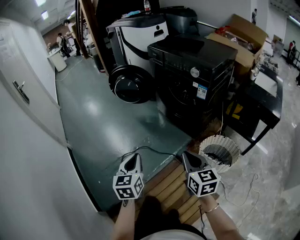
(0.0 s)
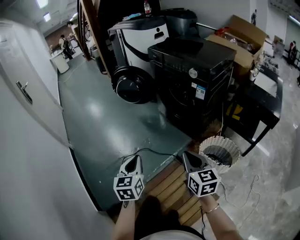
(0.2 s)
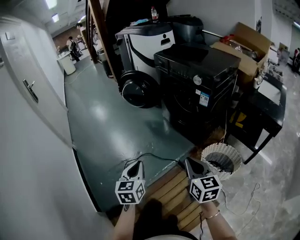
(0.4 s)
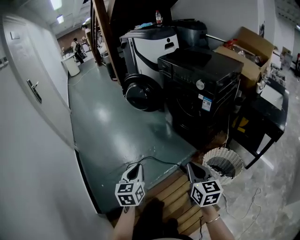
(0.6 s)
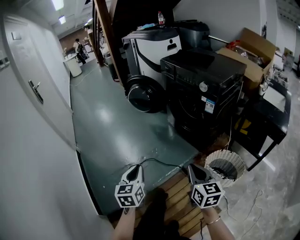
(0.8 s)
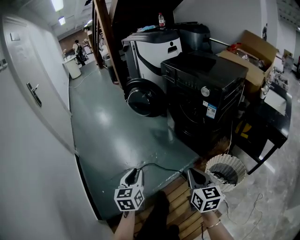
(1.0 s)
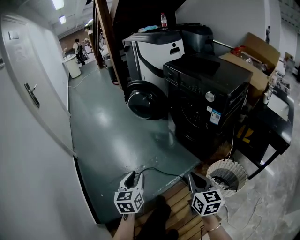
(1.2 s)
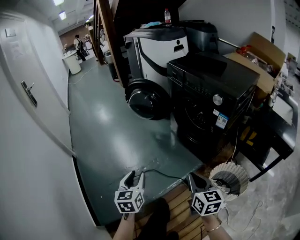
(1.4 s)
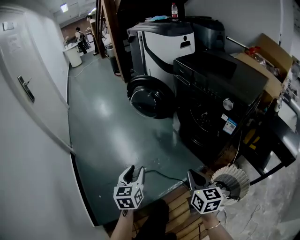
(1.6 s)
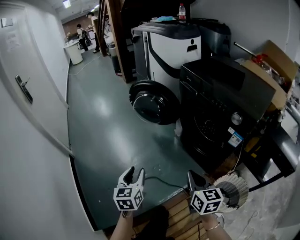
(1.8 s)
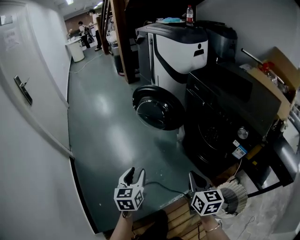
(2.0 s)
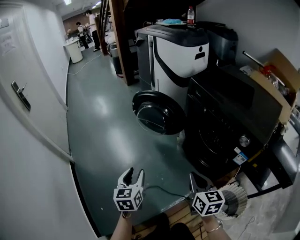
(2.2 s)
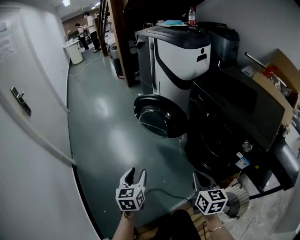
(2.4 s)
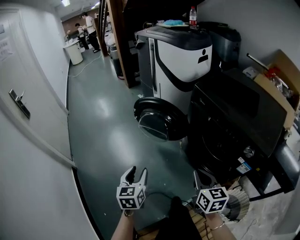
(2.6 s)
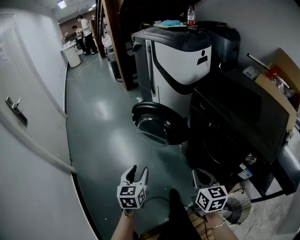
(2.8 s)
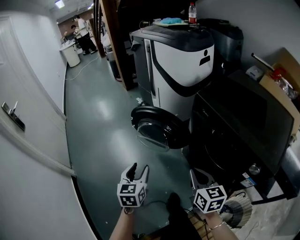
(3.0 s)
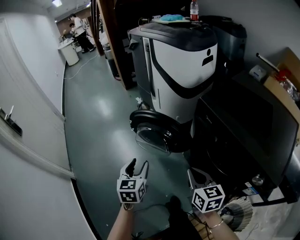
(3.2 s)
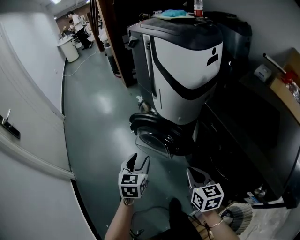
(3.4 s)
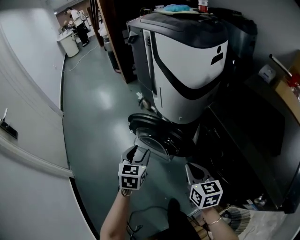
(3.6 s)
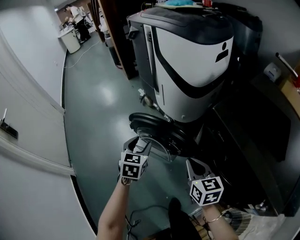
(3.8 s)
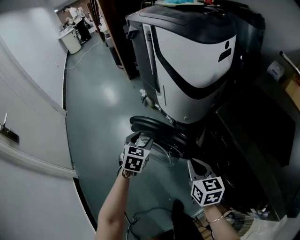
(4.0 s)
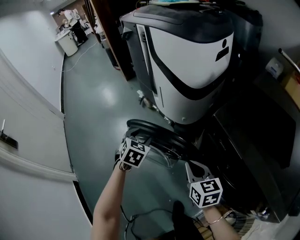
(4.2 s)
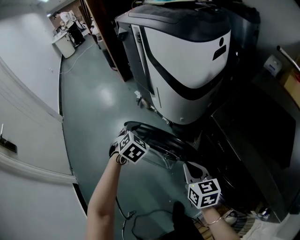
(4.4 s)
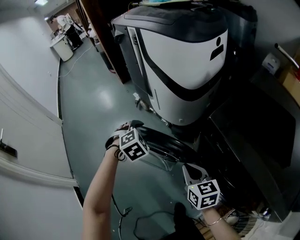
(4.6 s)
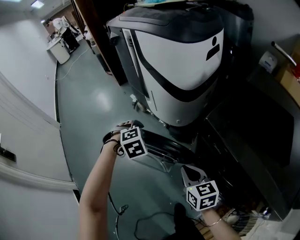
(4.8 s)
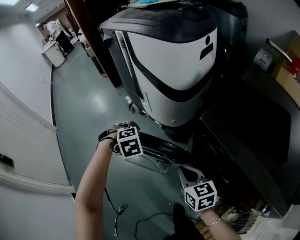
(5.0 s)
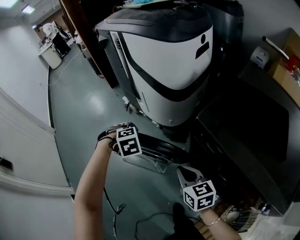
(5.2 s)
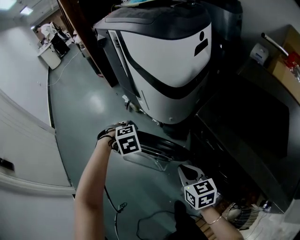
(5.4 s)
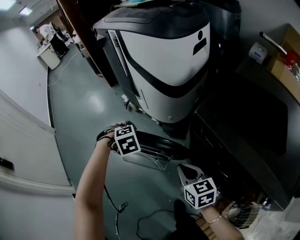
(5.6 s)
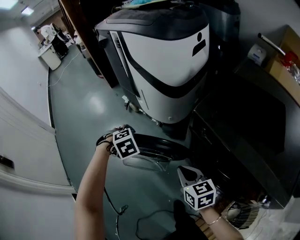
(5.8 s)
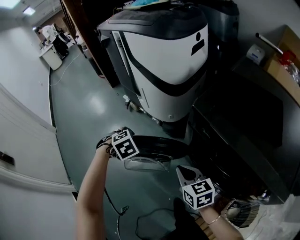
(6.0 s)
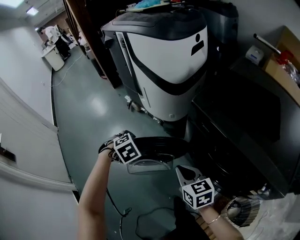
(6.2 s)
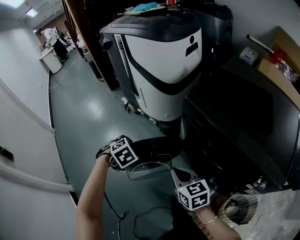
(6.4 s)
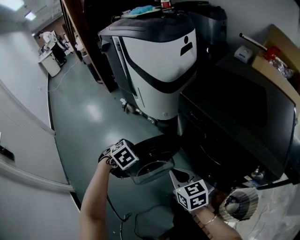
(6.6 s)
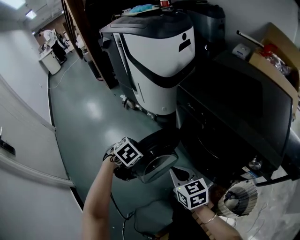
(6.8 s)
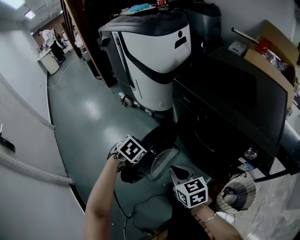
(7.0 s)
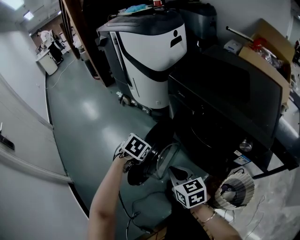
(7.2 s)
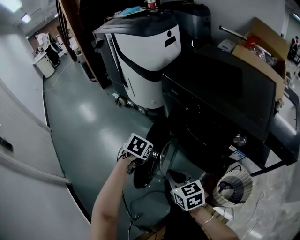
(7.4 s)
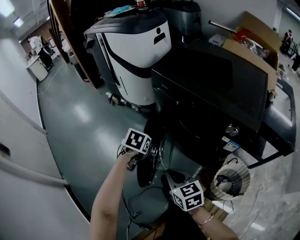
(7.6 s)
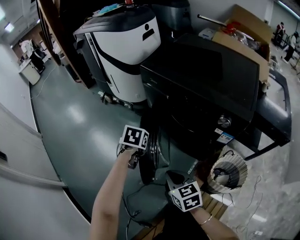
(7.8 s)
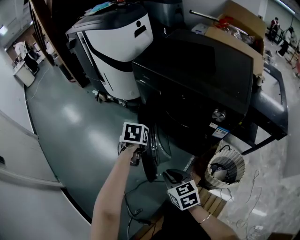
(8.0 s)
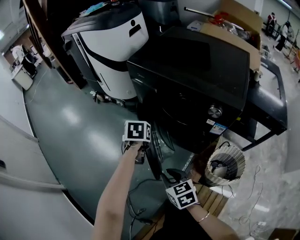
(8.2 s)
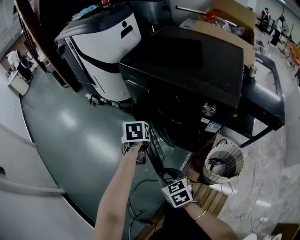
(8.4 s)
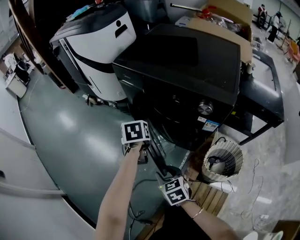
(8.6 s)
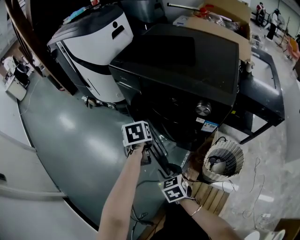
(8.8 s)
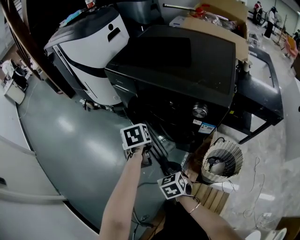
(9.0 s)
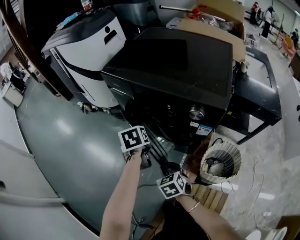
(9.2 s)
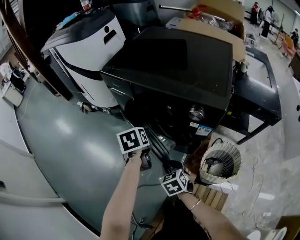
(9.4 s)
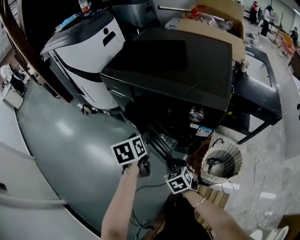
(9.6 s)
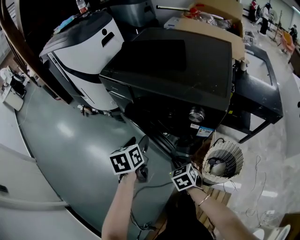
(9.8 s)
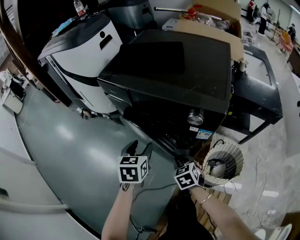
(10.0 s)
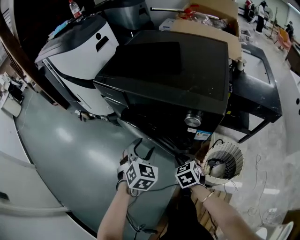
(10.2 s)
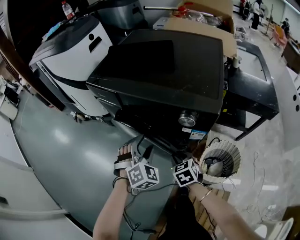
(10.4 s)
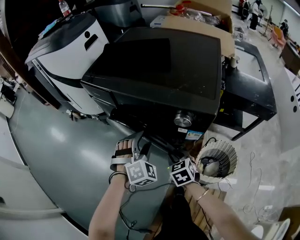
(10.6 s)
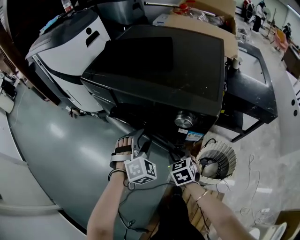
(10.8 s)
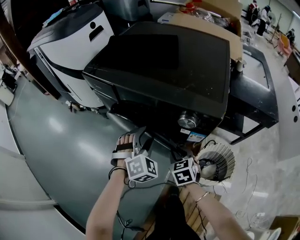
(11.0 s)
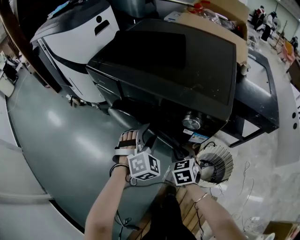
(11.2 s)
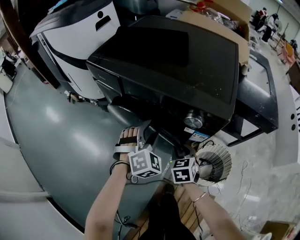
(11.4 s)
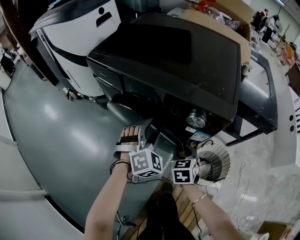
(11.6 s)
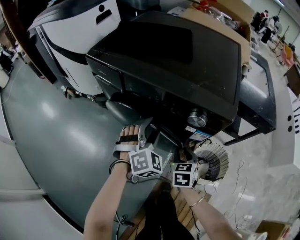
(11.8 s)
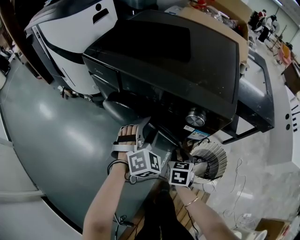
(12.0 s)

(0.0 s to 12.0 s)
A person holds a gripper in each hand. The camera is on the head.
0.0 s - 1.6 s: The grippers both shift forward by roughly 20 cm. The left gripper opens its fingers.
1.6 s - 3.0 s: The pair of grippers is taken forward, roughly 40 cm.
3.0 s - 4.4 s: The two grippers go approximately 35 cm forward. The left gripper rotates around the line of its fingers by approximately 50 degrees, clockwise from behind.
4.4 s - 6.0 s: The right gripper ends up roughly 5 cm from where it was. The left gripper ends up roughly 5 cm from where it was, and changes its angle by roughly 30 degrees.
6.0 s - 7.6 s: The left gripper moves backward and to the right, roughly 35 cm, and turns by some 40 degrees. The right gripper travels backward by about 35 cm.
7.6 s - 9.0 s: The right gripper is displaced downward and to the right by roughly 15 cm, swivels roughly 20 degrees, and opens up; the left gripper is displaced to the right by about 15 cm, and rotates about 30 degrees.
9.0 s - 10.4 s: The right gripper shifts approximately 15 cm to the right and forward. Meanwhile the left gripper goes roughly 10 cm to the right, and rolls clockwise, seen from behind, by about 80 degrees.
10.4 s - 12.0 s: The left gripper is displaced forward by some 5 cm; the right gripper moves approximately 5 cm, and rotates roughly 20 degrees.

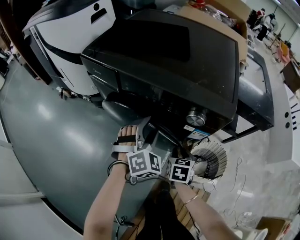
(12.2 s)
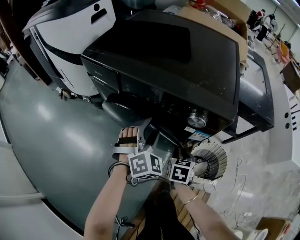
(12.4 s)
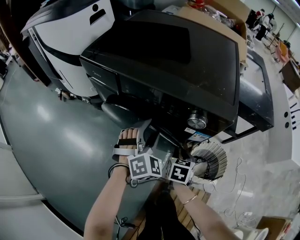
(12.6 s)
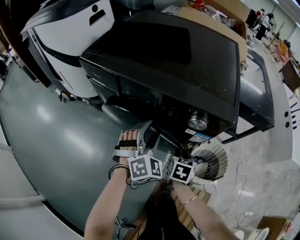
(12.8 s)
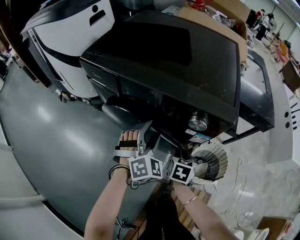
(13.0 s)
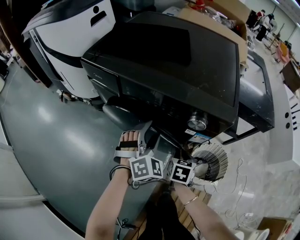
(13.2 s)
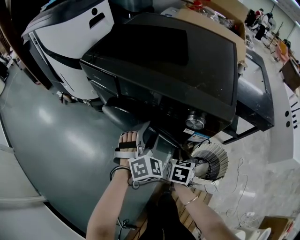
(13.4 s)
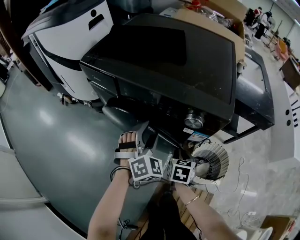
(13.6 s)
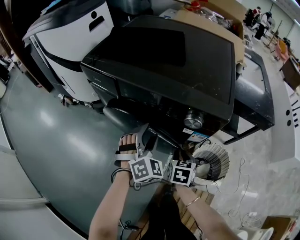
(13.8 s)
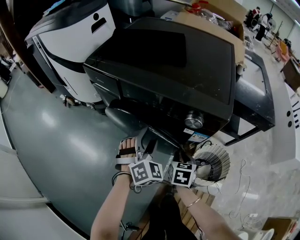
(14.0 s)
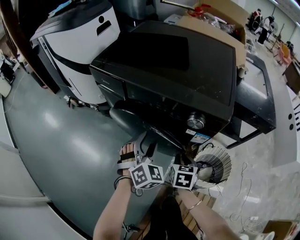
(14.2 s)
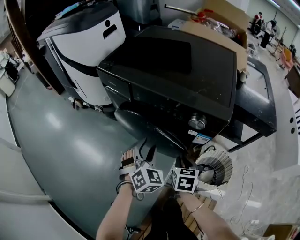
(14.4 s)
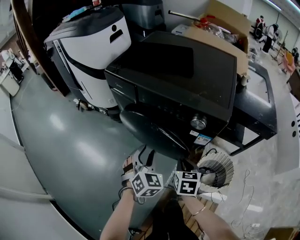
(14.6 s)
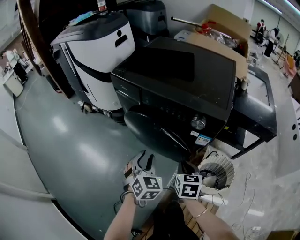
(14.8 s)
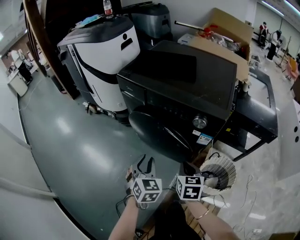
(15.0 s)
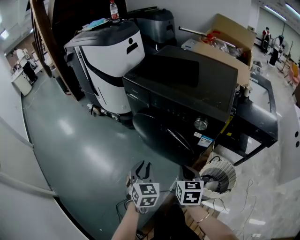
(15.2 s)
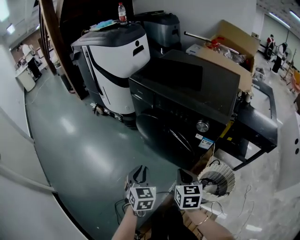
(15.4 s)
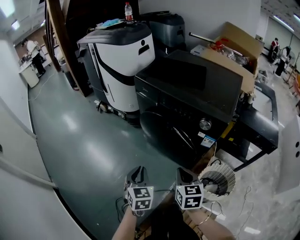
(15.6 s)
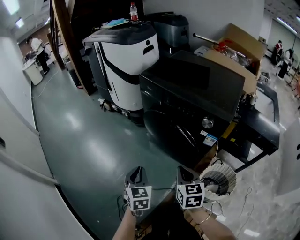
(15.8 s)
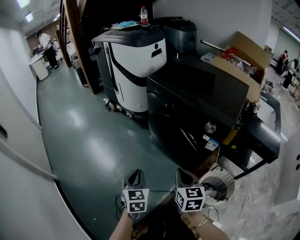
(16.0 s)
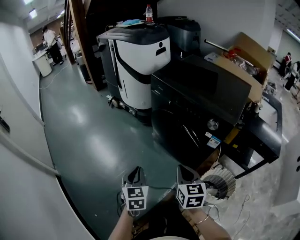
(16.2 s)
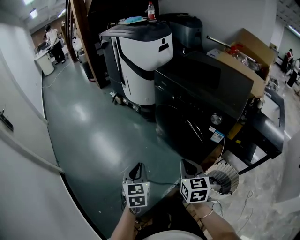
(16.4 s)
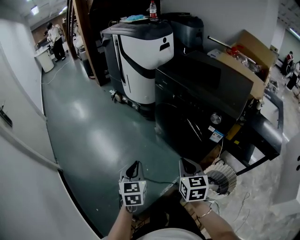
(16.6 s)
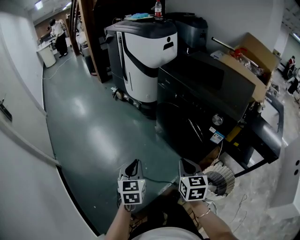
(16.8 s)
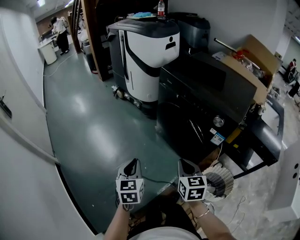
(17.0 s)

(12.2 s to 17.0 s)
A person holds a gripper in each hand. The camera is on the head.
12.2 s - 13.8 s: There are only small adjustments of the grippers.
13.8 s - 15.4 s: The right gripper moves upward, backward and to the left, some 25 cm, and swivels roughly 30 degrees, while the left gripper moves backward and to the left, approximately 30 cm, rolls counterclockwise, seen from behind, by some 50 degrees, and closes its fingers.
15.4 s - 17.0 s: The left gripper is displaced to the left and backward by some 15 cm, and turns by some 20 degrees; the right gripper is displaced to the left, upward and backward by about 10 cm.

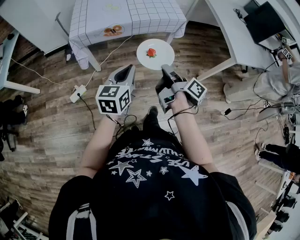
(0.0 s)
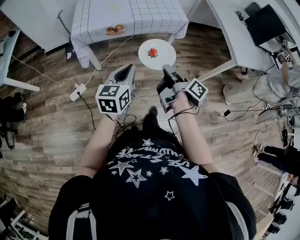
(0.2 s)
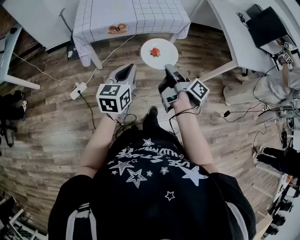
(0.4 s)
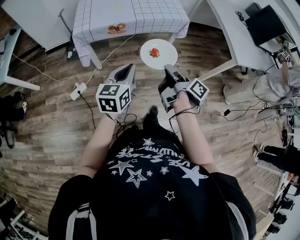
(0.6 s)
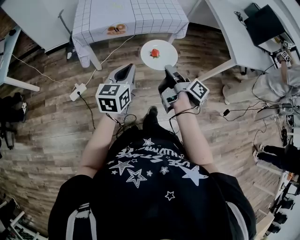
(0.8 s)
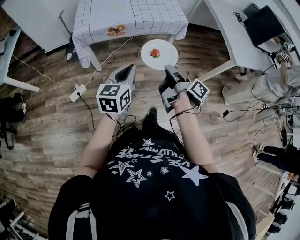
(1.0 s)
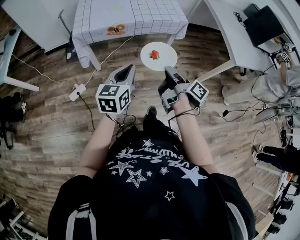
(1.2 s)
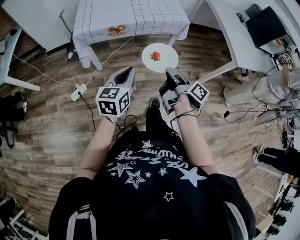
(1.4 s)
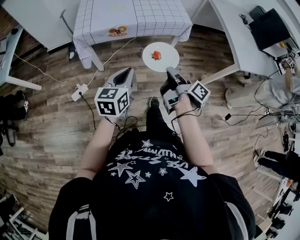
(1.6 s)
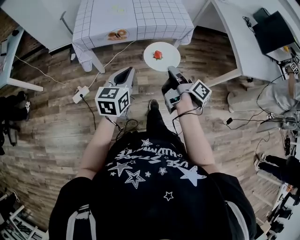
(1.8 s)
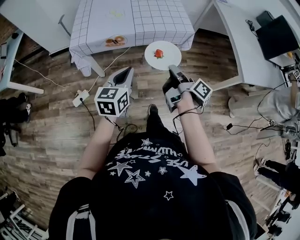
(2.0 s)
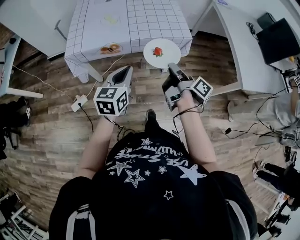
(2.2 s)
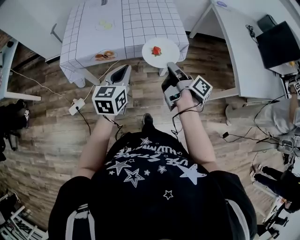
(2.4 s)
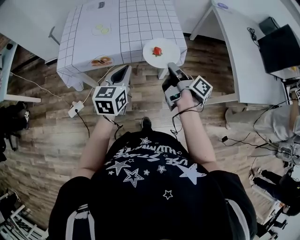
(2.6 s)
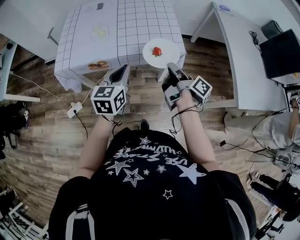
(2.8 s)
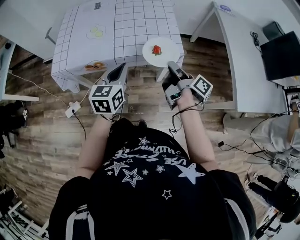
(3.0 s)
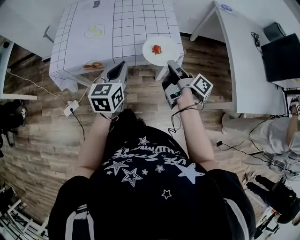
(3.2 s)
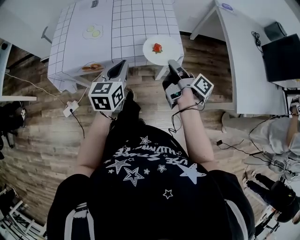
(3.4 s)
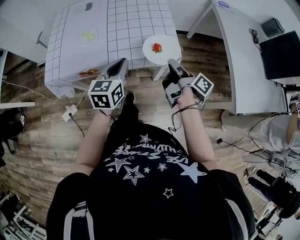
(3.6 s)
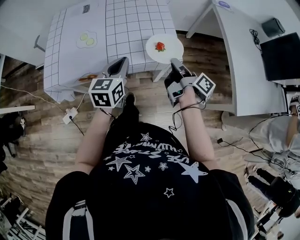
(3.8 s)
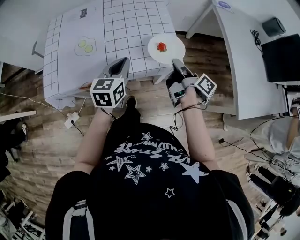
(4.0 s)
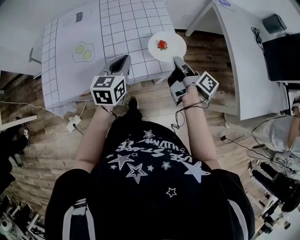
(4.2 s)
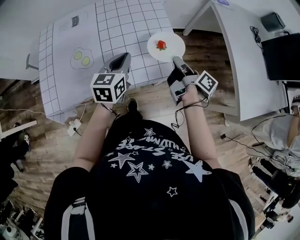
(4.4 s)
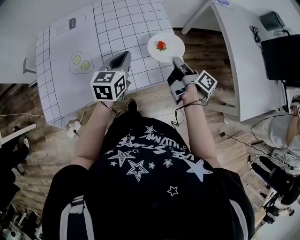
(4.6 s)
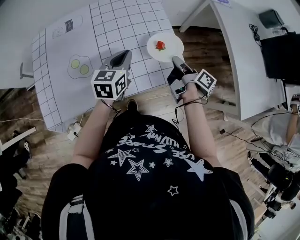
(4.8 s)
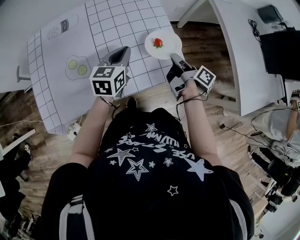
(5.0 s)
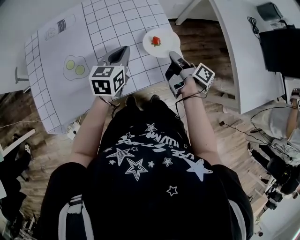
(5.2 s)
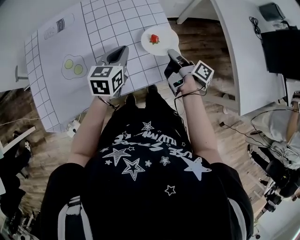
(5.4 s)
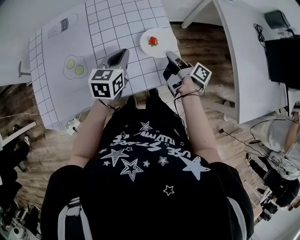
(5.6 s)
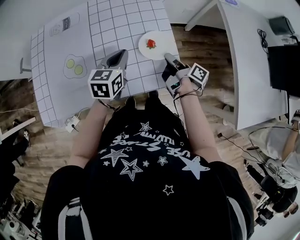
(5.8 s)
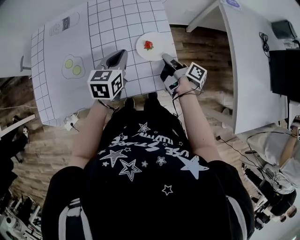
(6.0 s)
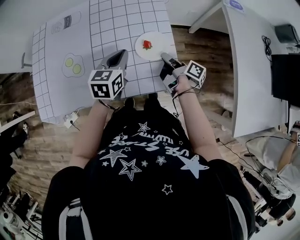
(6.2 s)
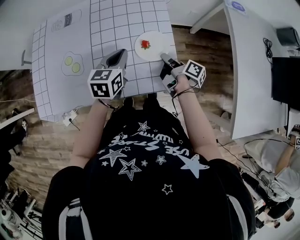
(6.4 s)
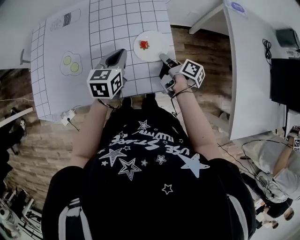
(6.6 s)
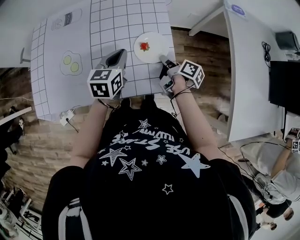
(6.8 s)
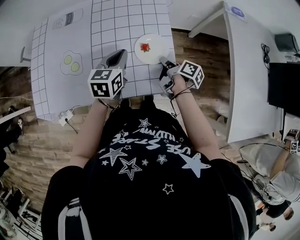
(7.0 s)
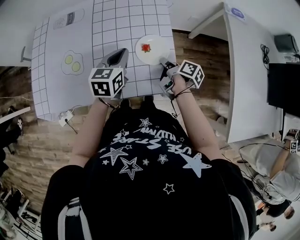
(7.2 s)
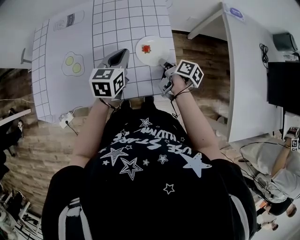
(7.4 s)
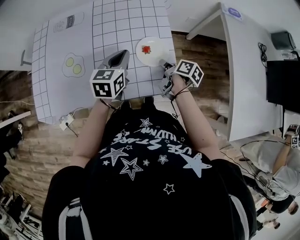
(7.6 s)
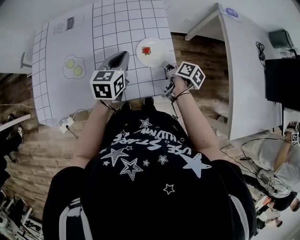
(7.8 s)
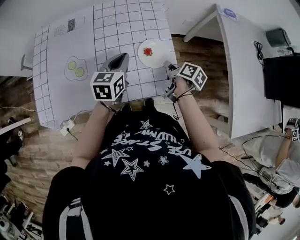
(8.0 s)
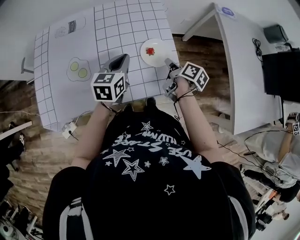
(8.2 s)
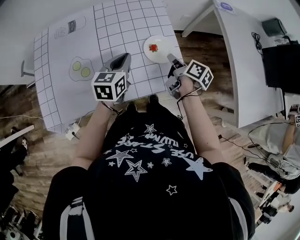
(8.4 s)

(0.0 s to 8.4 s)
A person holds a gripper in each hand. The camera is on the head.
1.4 s - 2.8 s: The left gripper moves about 30 cm.
2.8 s - 4.2 s: The left gripper ends up roughly 20 cm from where it was.
4.2 s - 5.6 s: The left gripper moves approximately 10 cm.
